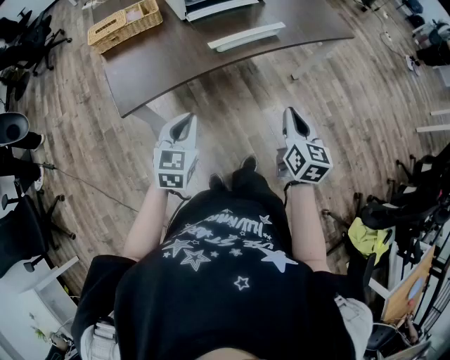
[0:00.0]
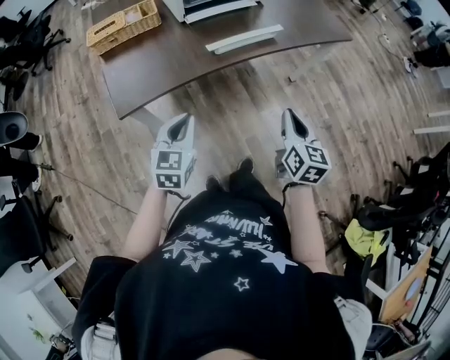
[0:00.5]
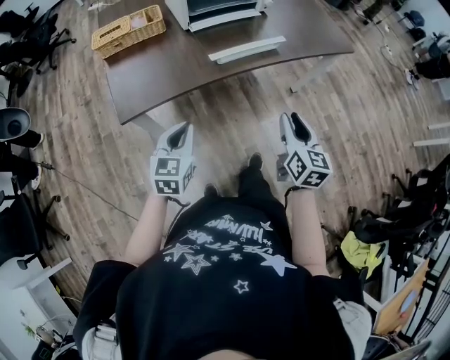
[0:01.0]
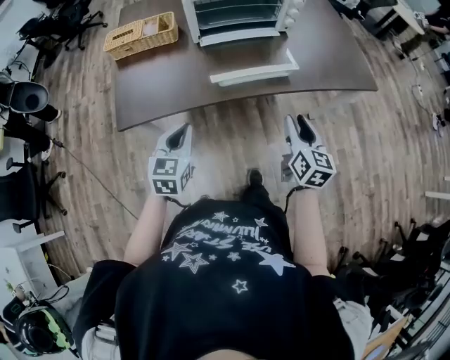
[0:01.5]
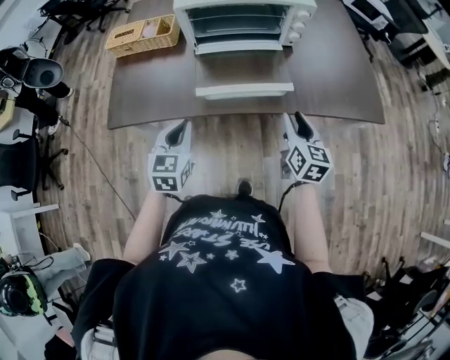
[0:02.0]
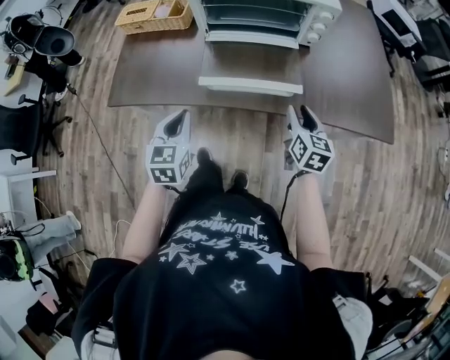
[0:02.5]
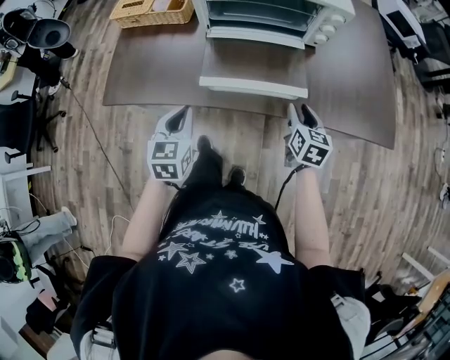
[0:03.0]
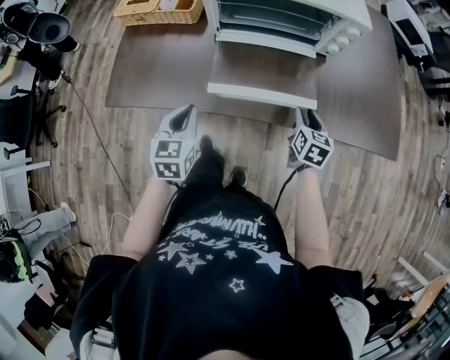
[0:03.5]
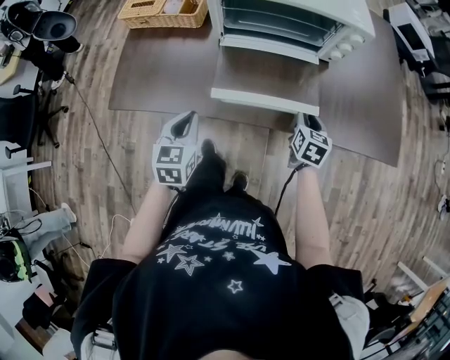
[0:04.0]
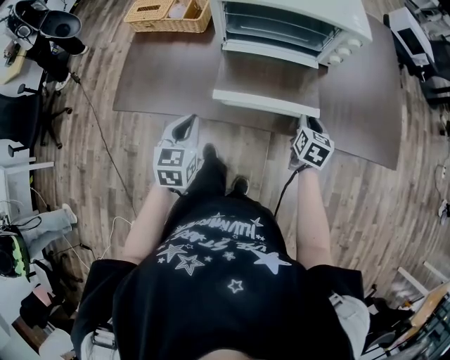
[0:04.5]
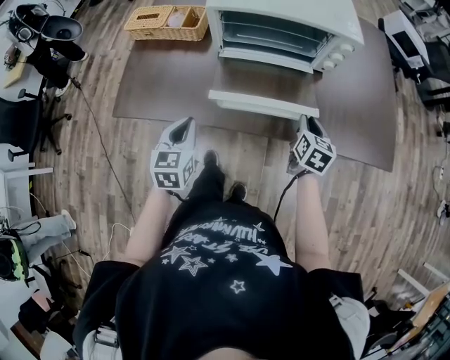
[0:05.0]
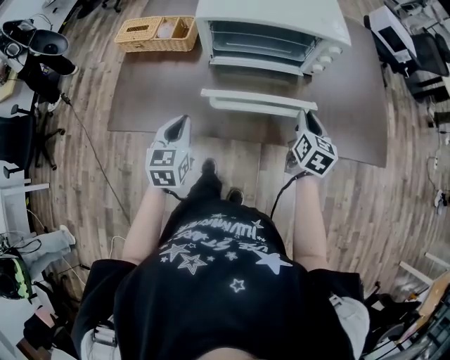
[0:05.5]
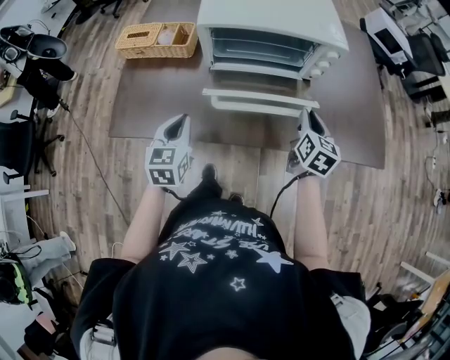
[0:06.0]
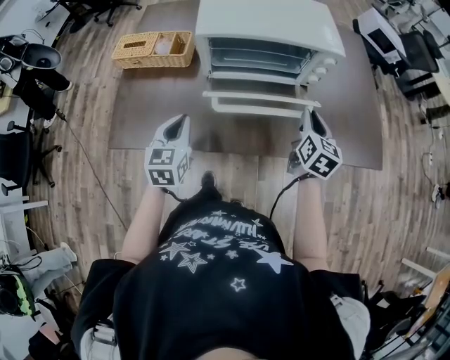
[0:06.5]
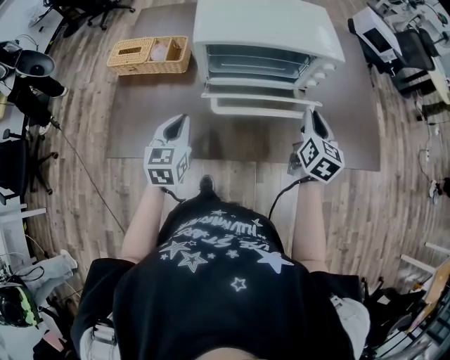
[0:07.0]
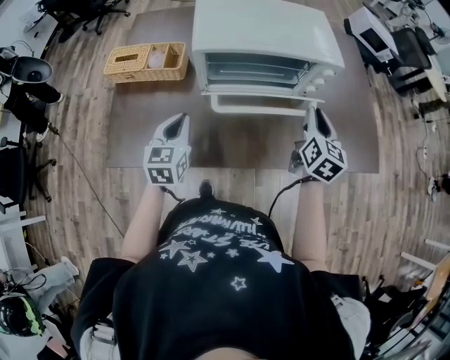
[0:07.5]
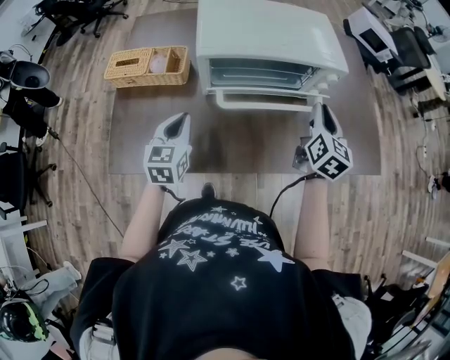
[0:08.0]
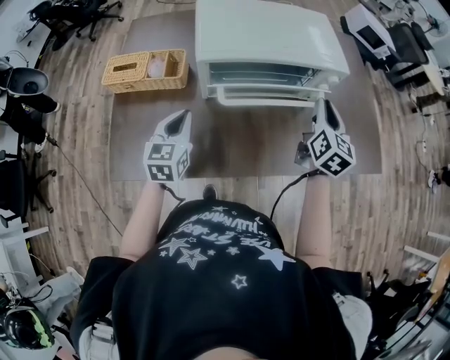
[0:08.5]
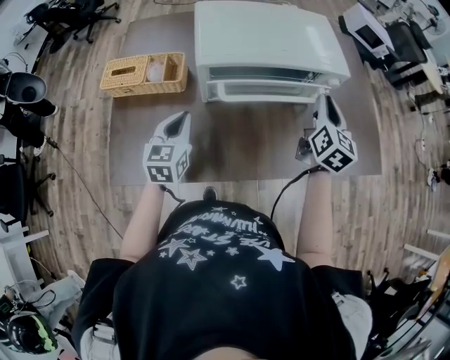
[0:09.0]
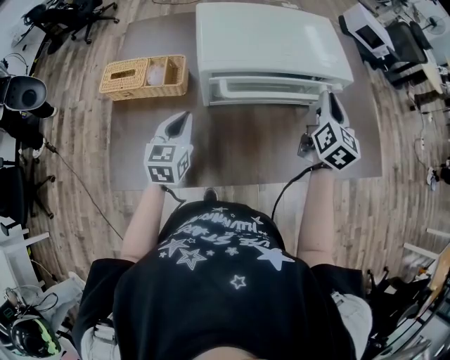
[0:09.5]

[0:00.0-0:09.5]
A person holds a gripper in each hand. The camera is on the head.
0:00.0 to 0:02.0: The right gripper moves some 30 cm, swivels some 20 degrees, and opens; the left gripper changes place by approximately 20 cm, and rotates about 30 degrees.
0:02.0 to 0:04.0: The right gripper shifts about 15 cm forward and downward, and changes its angle by approximately 20 degrees. The left gripper heads forward, covering about 5 cm.
0:04.0 to 0:05.5: The left gripper moves roughly 5 cm; the right gripper goes roughly 10 cm upward.
0:05.5 to 0:07.5: The left gripper travels forward by approximately 10 cm, while the right gripper heads upward and forward, covering about 10 cm.
0:07.5 to 0:09.5: The grippers both shift forward by roughly 5 cm.

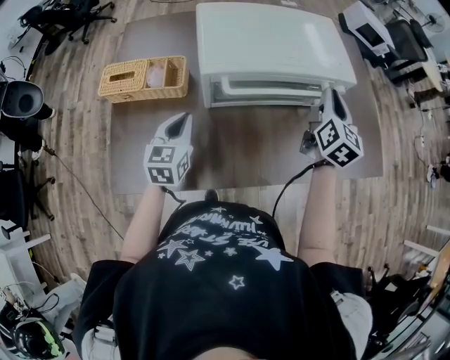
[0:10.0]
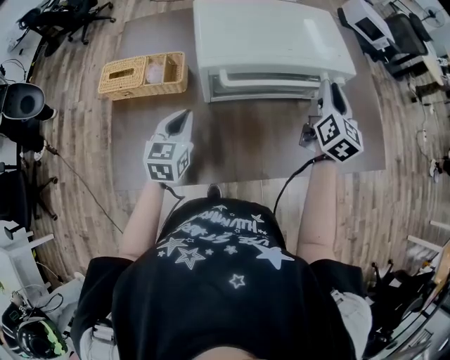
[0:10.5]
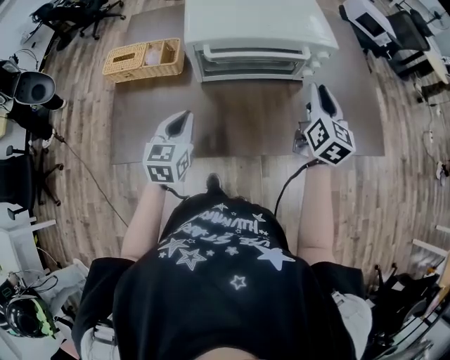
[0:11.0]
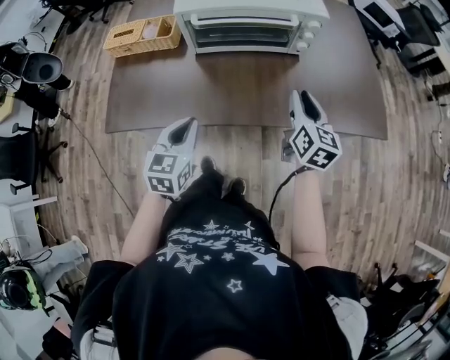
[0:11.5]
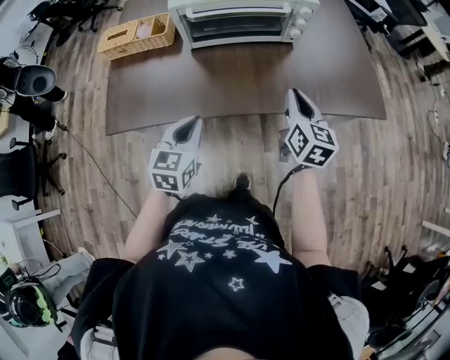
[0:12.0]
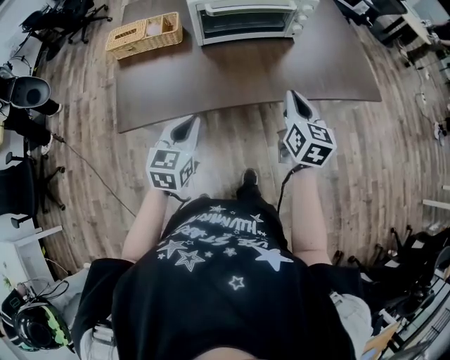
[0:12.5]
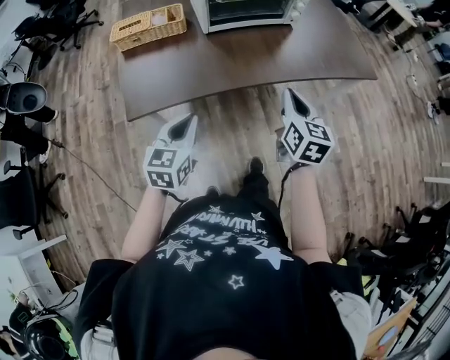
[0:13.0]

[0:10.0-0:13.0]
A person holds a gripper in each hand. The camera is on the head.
0:10.0 to 0:11.5: The left gripper is displaced backward and to the right by roughly 25 cm; the right gripper shifts some 20 cm backward.
0:11.5 to 0:13.0: Both grippers travel together backward and to the left, about 20 cm. The right gripper closes up.

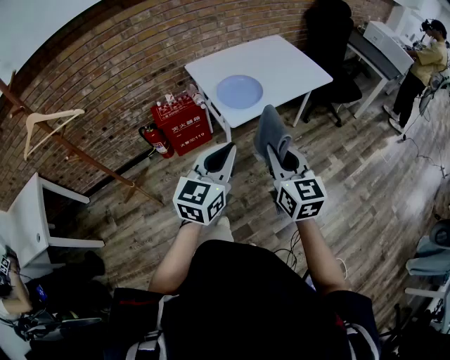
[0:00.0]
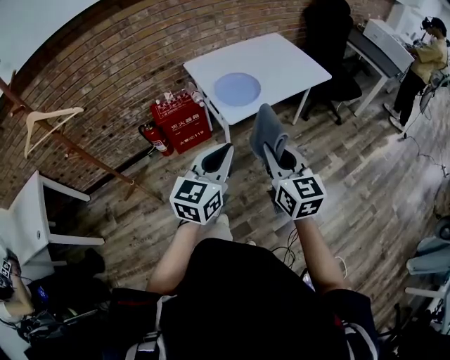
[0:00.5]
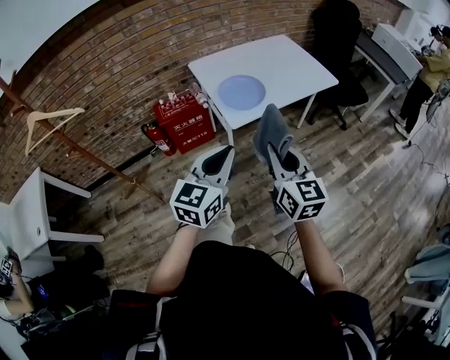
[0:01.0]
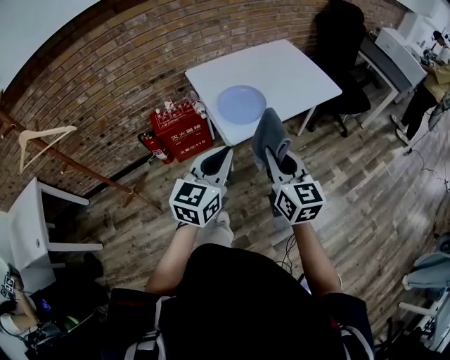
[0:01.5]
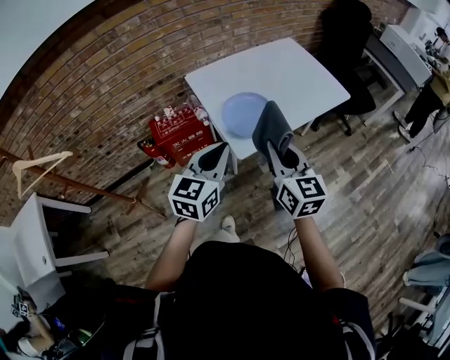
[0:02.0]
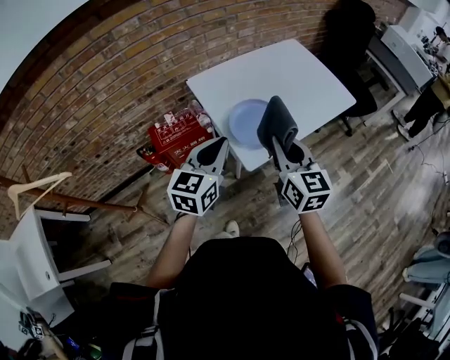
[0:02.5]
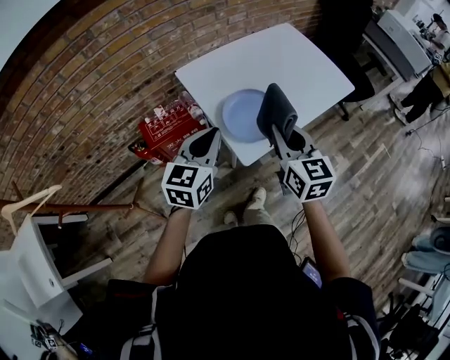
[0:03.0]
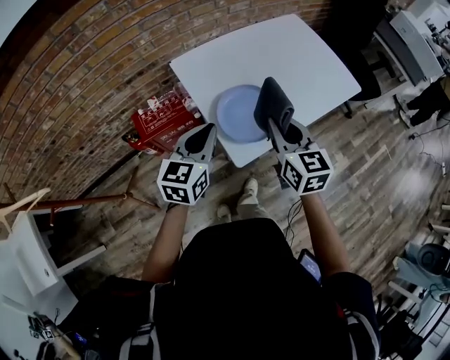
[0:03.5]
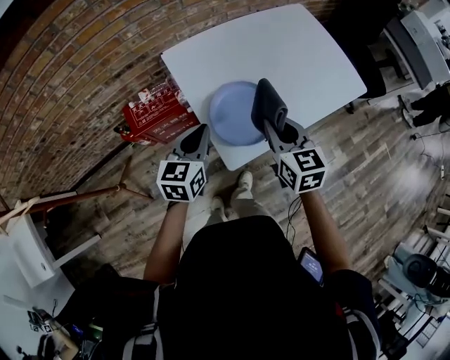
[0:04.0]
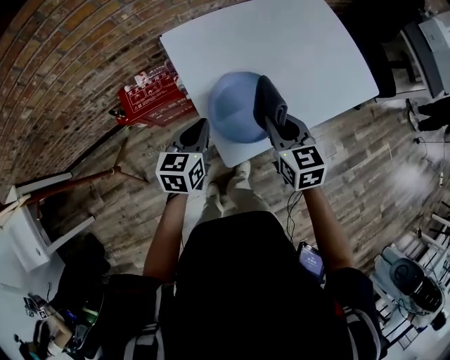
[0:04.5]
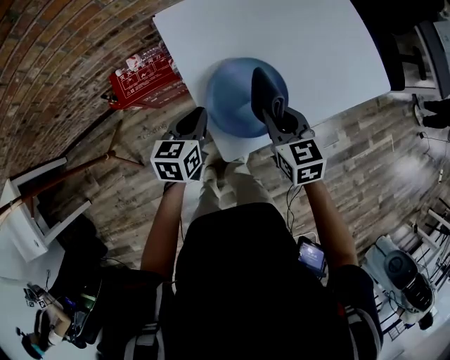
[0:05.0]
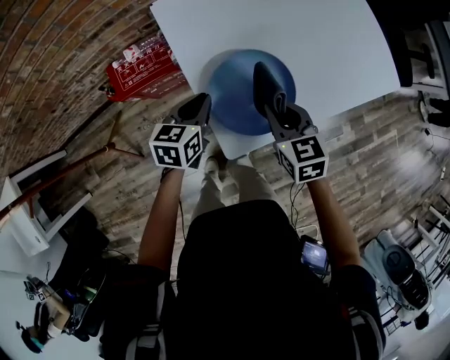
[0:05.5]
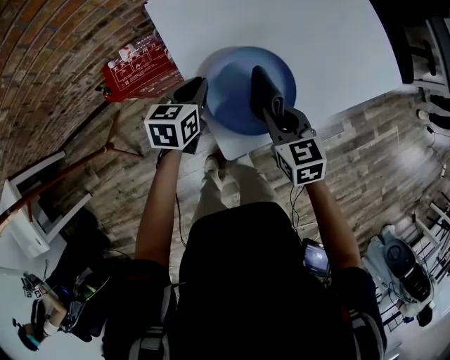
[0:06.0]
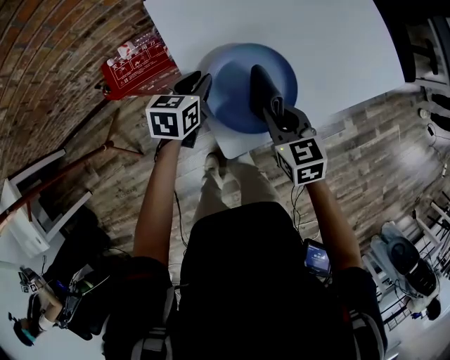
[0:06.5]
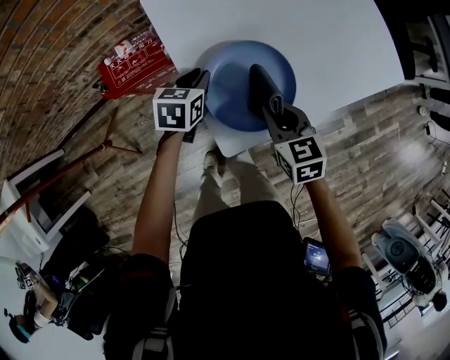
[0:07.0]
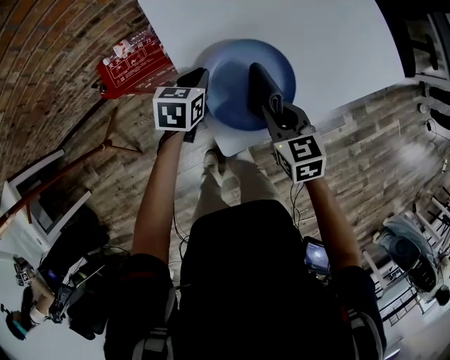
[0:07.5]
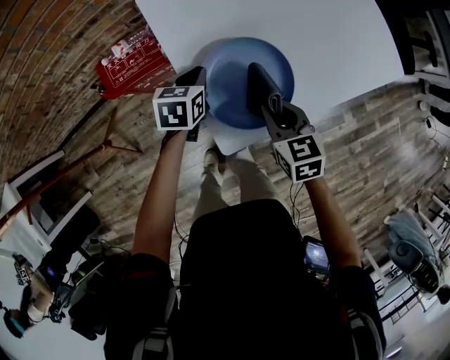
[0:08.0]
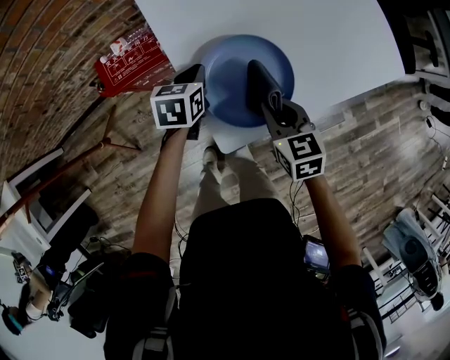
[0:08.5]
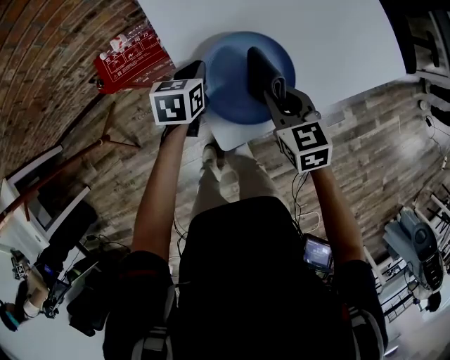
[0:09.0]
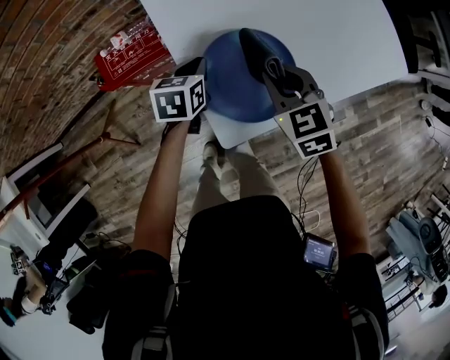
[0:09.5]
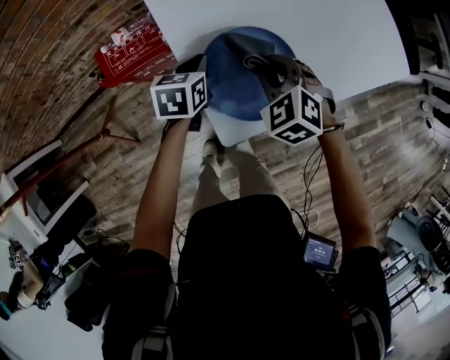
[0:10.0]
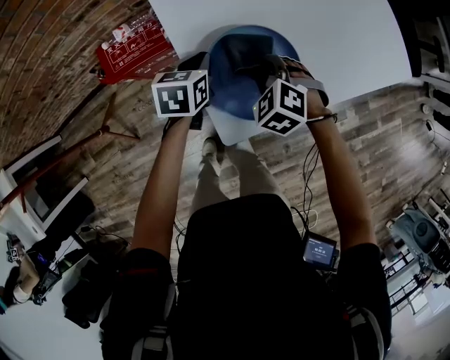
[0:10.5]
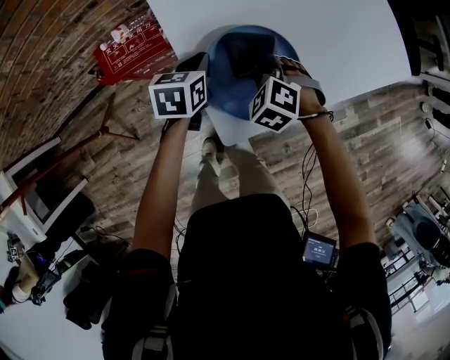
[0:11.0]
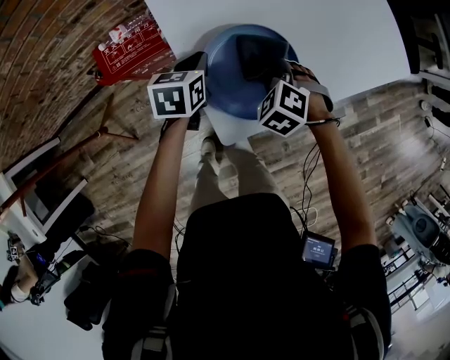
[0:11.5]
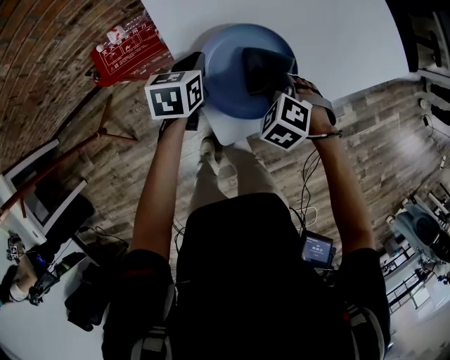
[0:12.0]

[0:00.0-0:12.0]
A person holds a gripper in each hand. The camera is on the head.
0:00.0 to 0:02.0: Both grippers move forward, about 20 cm.
0:02.0 to 0:04.0: Both grippers travel together forward and downward, approximately 25 cm.
0:04.0 to 0:06.0: The right gripper is displaced downward by some 15 cm; the left gripper goes approximately 20 cm downward and forward.
0:06.0 to 0:08.0: The grippers move only a little.
0:08.0 to 0:10.0: The right gripper moves forward, roughly 5 cm, and rotates around the line of its fingers by about 40 degrees, counterclockwise from behind.
0:10.0 to 0:12.0: The right gripper heads downward, covering roughly 5 cm, and turns by approximately 20 degrees.

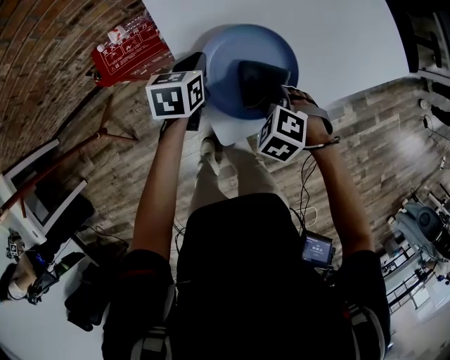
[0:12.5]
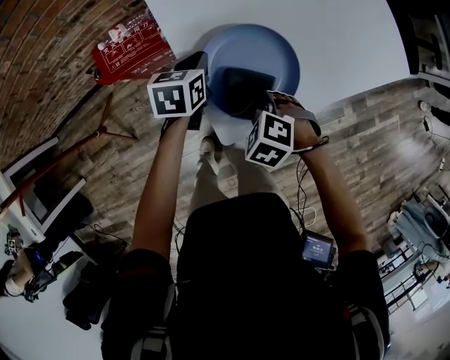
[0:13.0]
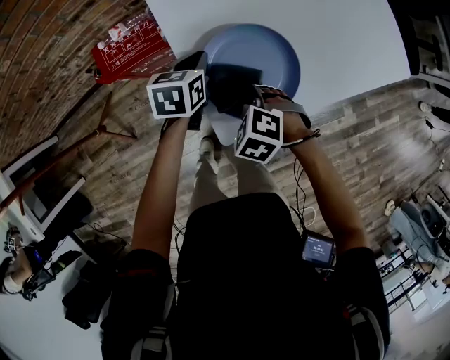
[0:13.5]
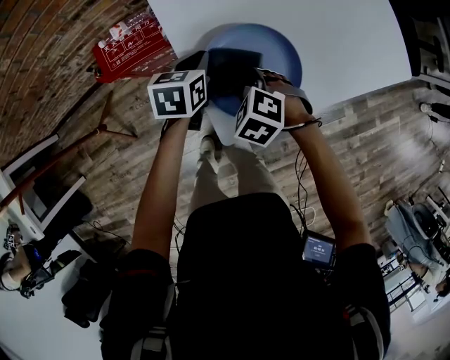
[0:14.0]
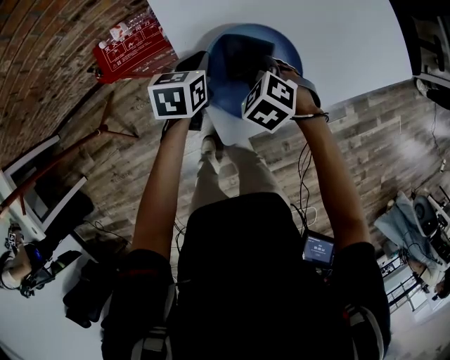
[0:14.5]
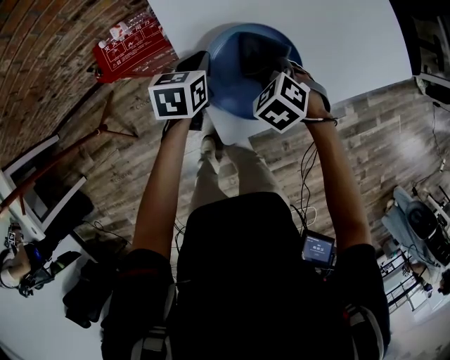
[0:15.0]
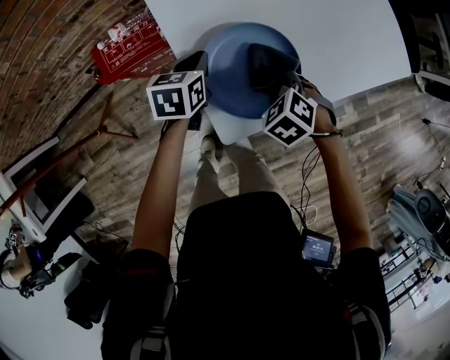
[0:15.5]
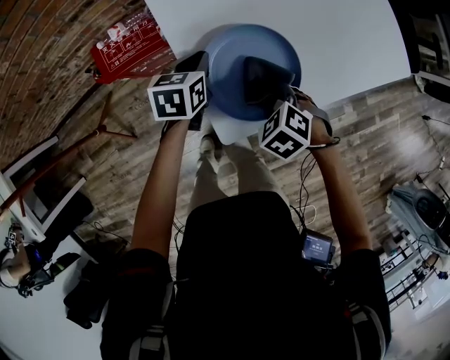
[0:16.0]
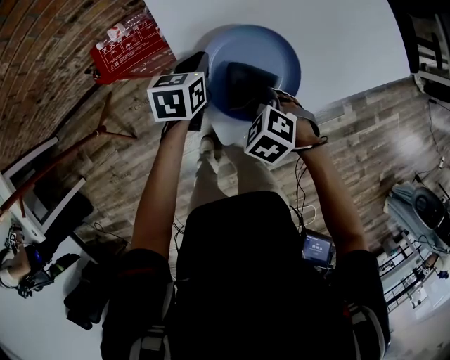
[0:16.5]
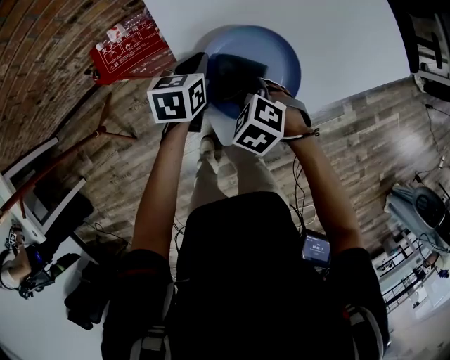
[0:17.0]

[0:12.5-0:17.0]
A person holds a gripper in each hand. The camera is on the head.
0:12.5 to 0:14.5: The right gripper travels forward by approximately 5 cm.
0:14.5 to 0:17.0: The right gripper travels backward by approximately 5 cm.
